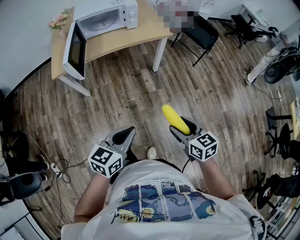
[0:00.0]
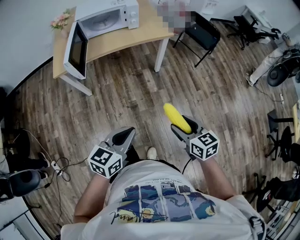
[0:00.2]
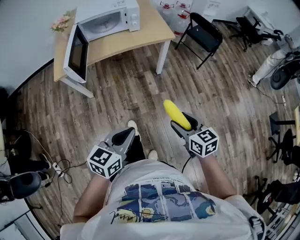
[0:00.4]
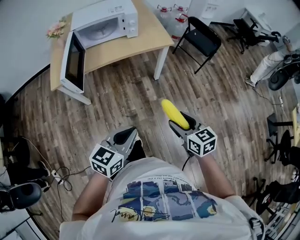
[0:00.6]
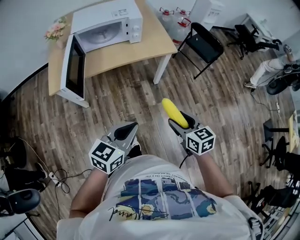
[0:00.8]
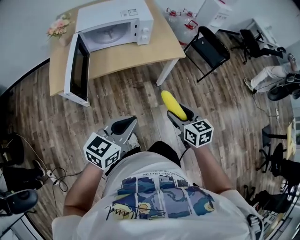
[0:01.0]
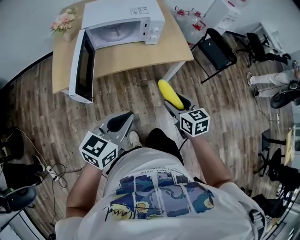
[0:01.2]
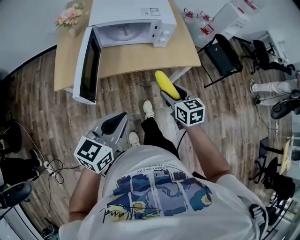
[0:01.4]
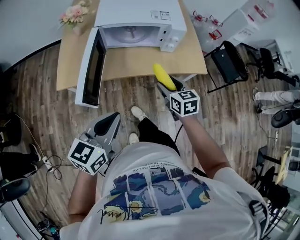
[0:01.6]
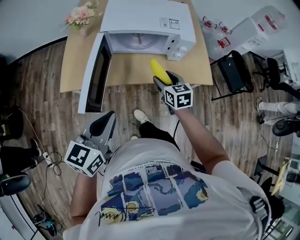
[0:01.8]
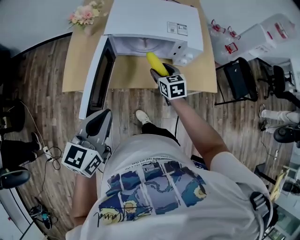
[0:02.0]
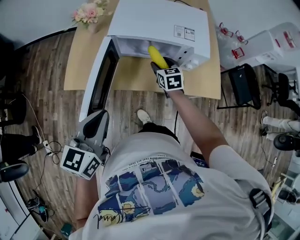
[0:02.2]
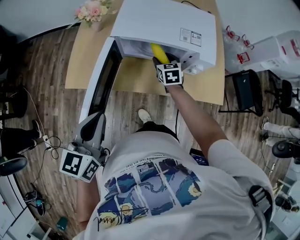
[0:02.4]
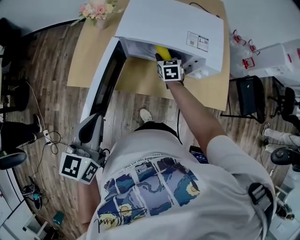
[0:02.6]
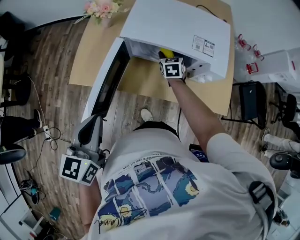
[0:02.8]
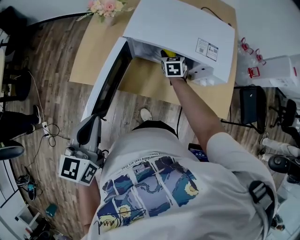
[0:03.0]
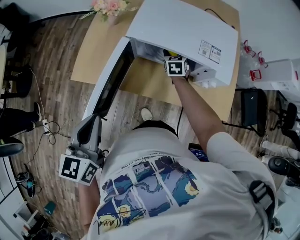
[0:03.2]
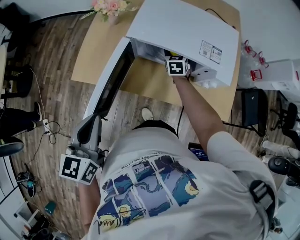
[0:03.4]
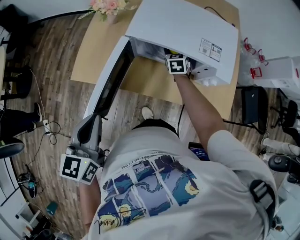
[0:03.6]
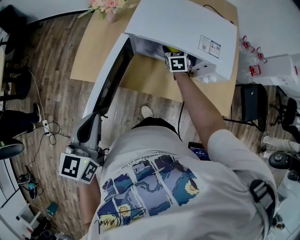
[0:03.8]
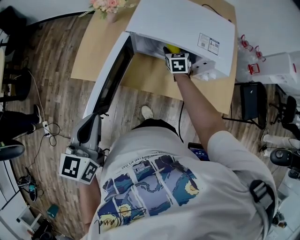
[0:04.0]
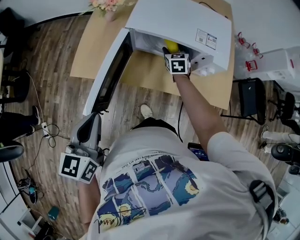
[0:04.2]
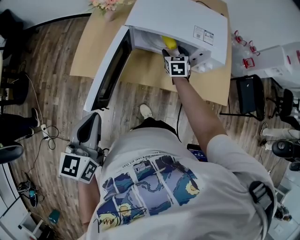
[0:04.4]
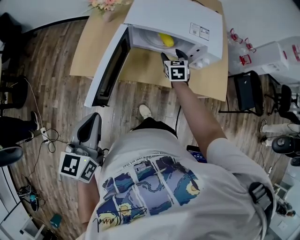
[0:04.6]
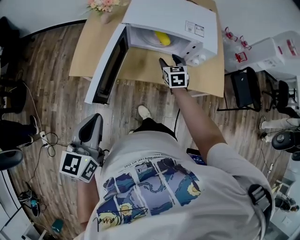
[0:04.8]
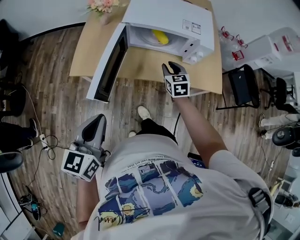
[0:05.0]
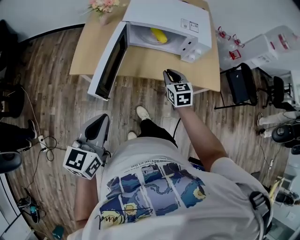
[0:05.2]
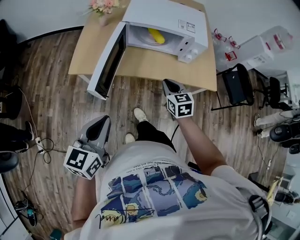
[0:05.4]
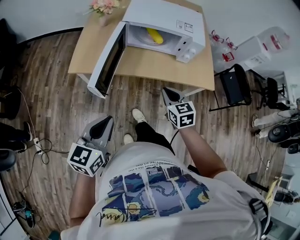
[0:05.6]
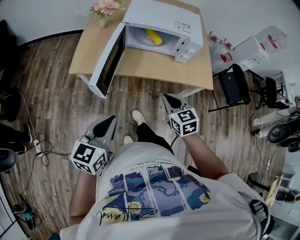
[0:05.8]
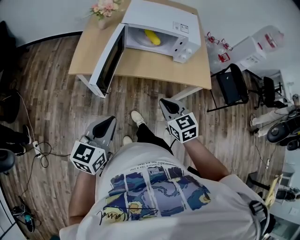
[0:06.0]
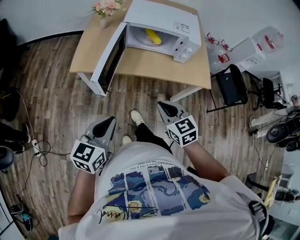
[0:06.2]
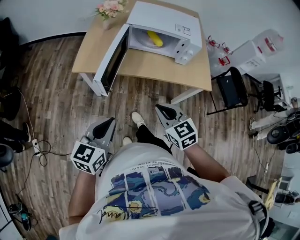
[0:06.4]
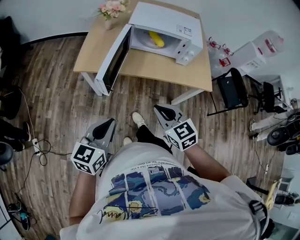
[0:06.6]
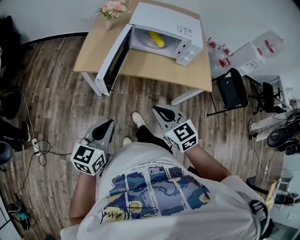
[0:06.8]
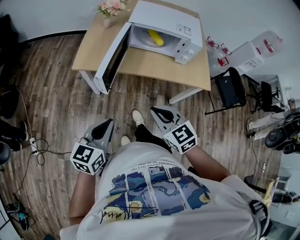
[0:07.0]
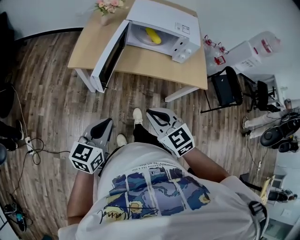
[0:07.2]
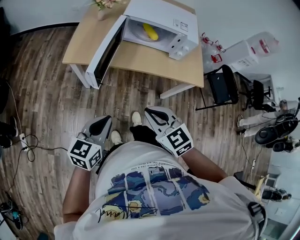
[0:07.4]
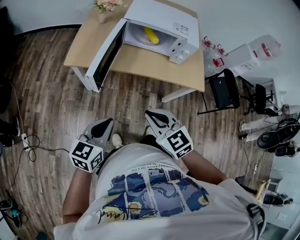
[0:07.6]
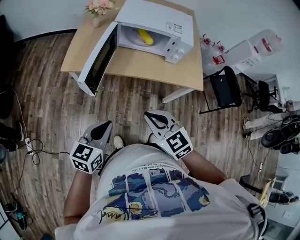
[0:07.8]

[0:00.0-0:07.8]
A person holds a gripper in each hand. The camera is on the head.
0.0 to 1.6 s: The two grippers go roughly 40 cm forward and to the left.
1.6 to 3.2 s: The right gripper shifts approximately 35 cm forward, while the left gripper travels forward and to the left by roughly 15 cm, and swivels some 40 degrees.
3.2 to 4.6 s: The grippers both shift backward by about 10 cm.
4.6 to 6.2 s: The left gripper is displaced backward by roughly 10 cm; the right gripper moves backward, about 35 cm, and closes up.
6.2 to 7.8 s: The left gripper changes place by some 5 cm.

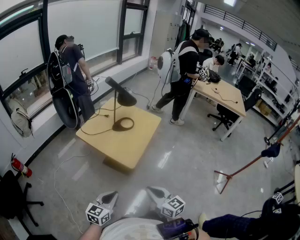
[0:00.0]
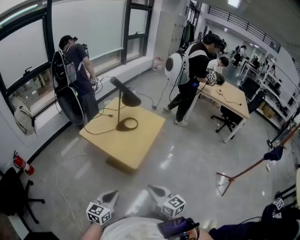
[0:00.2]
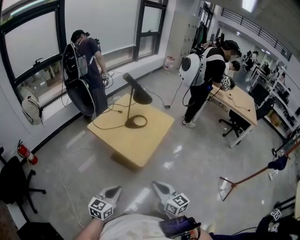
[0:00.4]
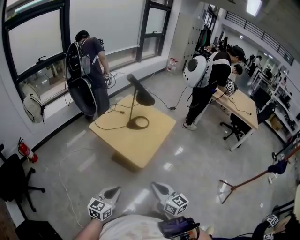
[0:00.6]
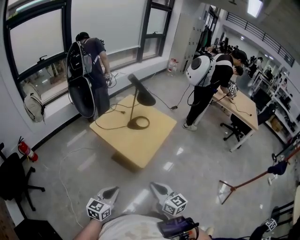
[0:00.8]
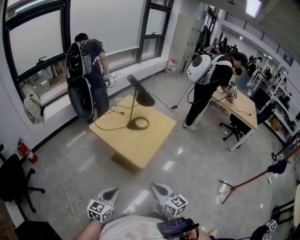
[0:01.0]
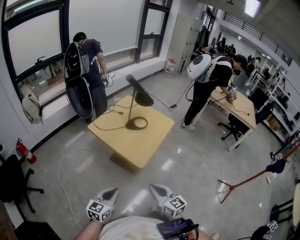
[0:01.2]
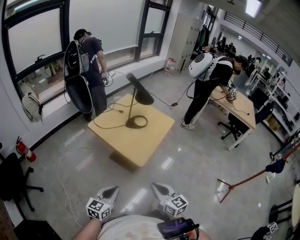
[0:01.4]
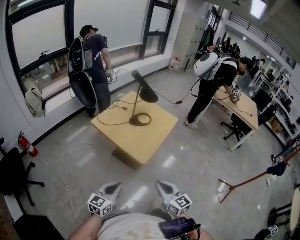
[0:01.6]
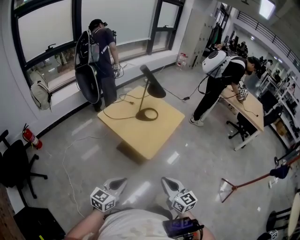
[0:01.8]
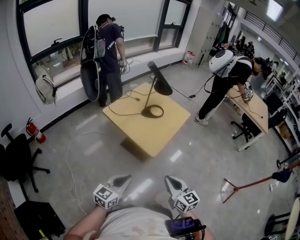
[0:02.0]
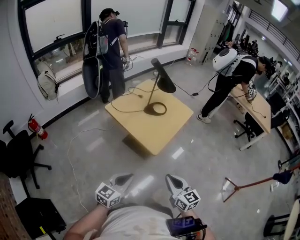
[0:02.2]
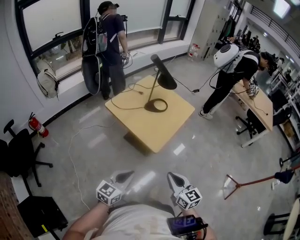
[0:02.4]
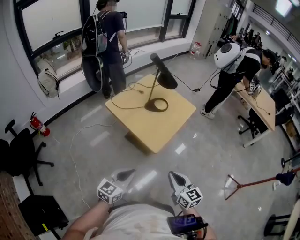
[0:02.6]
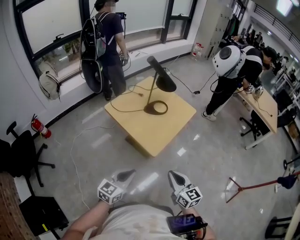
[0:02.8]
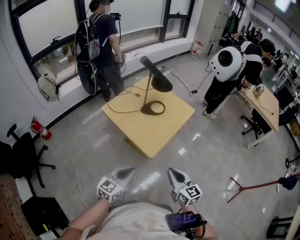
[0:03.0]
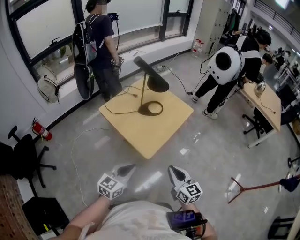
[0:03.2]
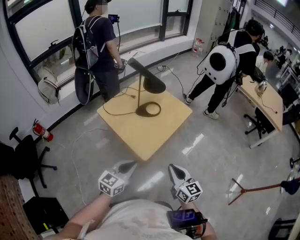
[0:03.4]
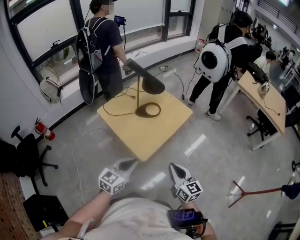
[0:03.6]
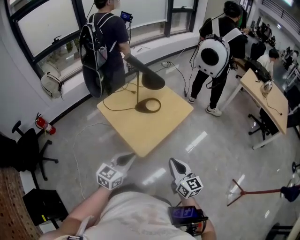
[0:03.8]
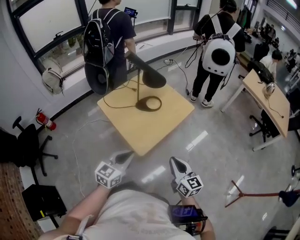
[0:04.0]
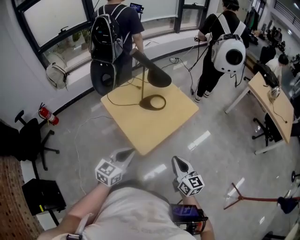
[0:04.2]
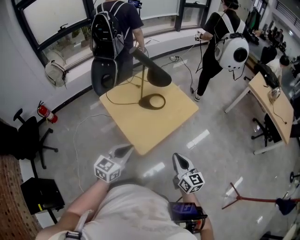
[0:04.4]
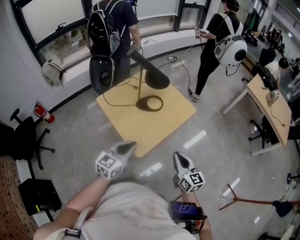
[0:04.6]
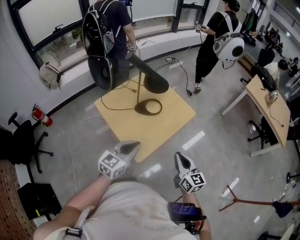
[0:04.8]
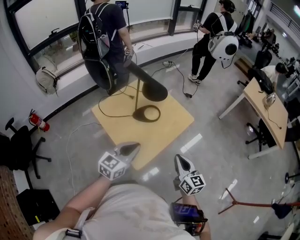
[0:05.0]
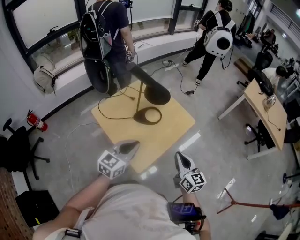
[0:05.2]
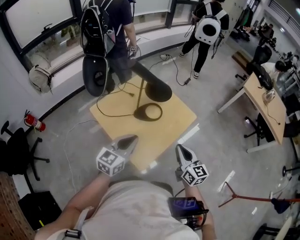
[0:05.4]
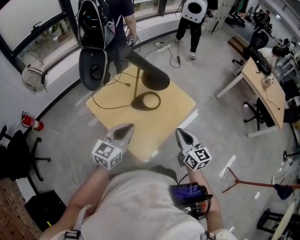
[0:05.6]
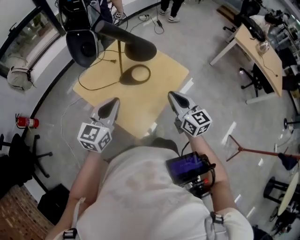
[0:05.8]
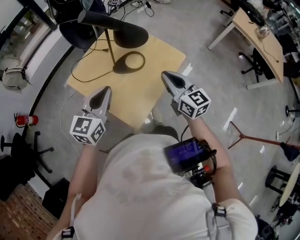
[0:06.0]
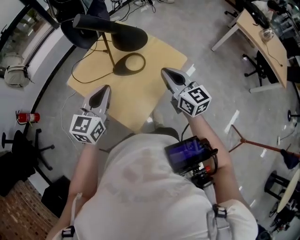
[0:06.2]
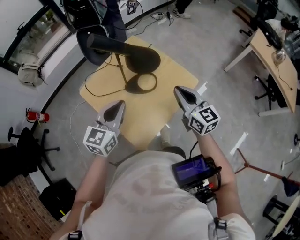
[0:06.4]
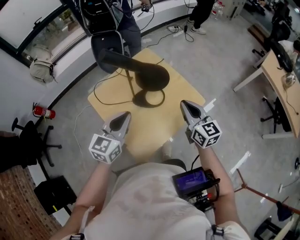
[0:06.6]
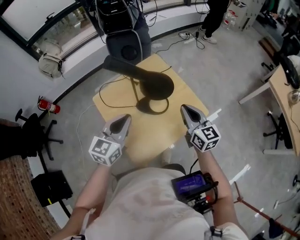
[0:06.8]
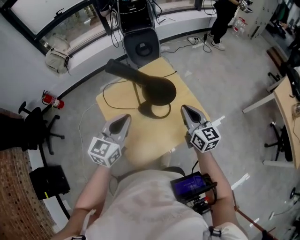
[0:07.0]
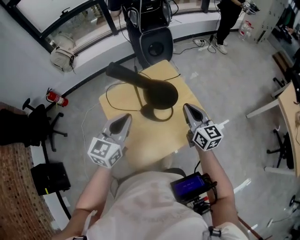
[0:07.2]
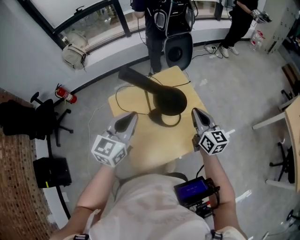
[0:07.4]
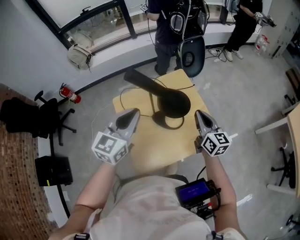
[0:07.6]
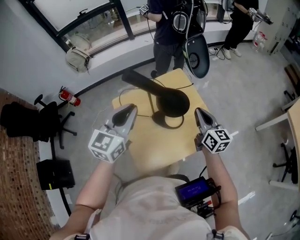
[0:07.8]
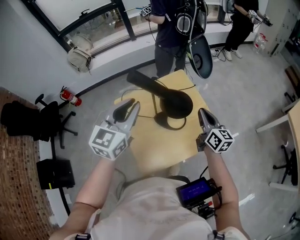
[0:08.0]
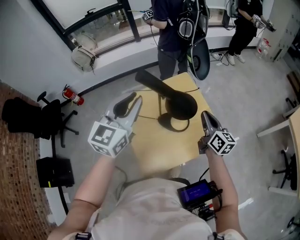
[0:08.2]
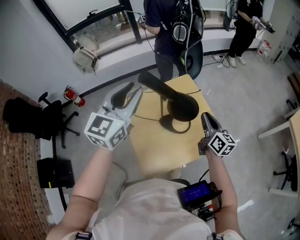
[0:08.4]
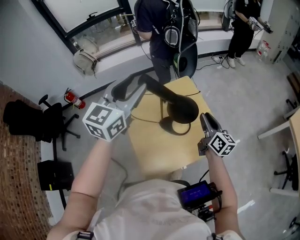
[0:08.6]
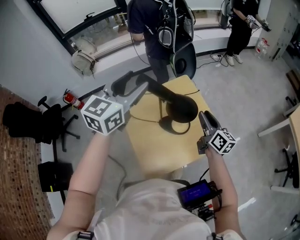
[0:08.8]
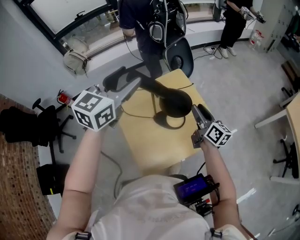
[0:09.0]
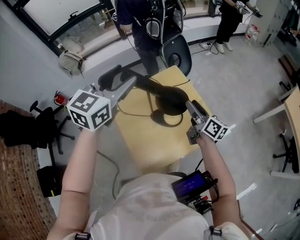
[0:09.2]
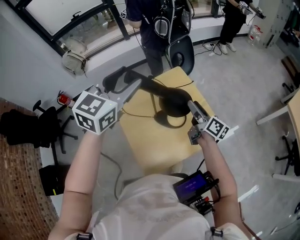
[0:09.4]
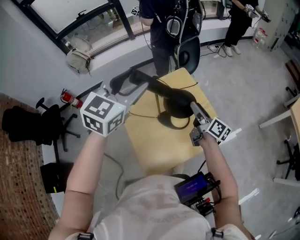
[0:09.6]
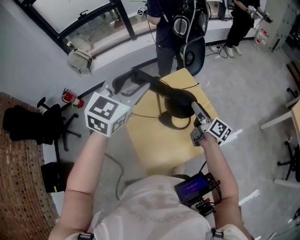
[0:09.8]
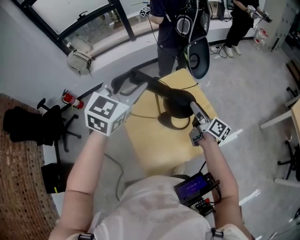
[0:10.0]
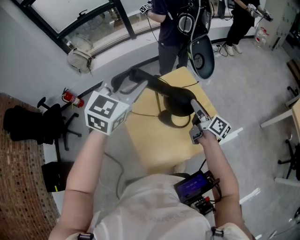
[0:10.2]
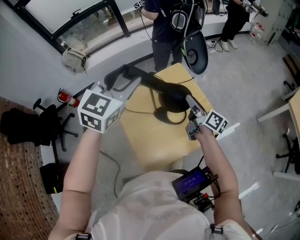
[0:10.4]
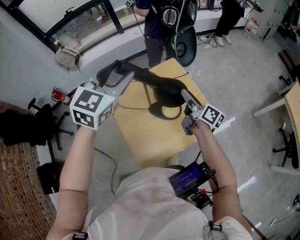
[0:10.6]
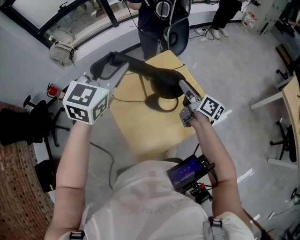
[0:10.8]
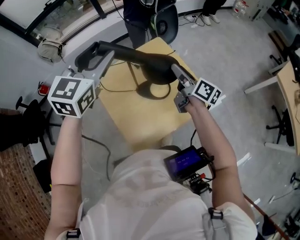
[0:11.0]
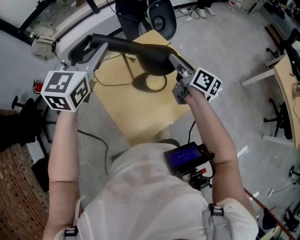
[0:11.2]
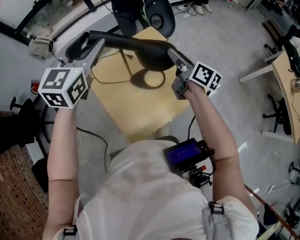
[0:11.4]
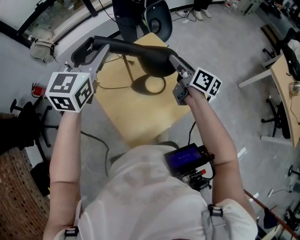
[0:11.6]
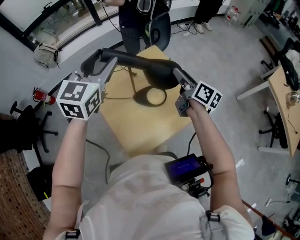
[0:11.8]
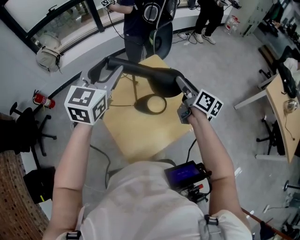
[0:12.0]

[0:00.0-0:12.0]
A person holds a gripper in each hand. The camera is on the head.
0.0 to 1.6 s: The grippers stay close to where they were, moving slightly.
1.6 to 3.0 s: The right gripper is displaced forward by roughly 10 cm. The left gripper heads forward and to the right, covering approximately 10 cm.
3.0 to 4.4 s: Both grippers move forward and to the right, about 15 cm.
4.4 to 6.0 s: The grippers both shift forward by some 20 cm.
6.0 to 7.6 s: The left gripper is displaced forward and upward by approximately 15 cm, and changes its angle by some 30 degrees; the right gripper is displaced forward by about 20 cm.
7.6 to 9.0 s: The right gripper swivels about 20 degrees, and opens. Meanwhile the left gripper travels upward and forward by some 15 cm, and opens up.
9.0 to 10.4 s: The right gripper turns by approximately 20 degrees.
10.4 to 12.0 s: The right gripper shifts roughly 5 cm upward.

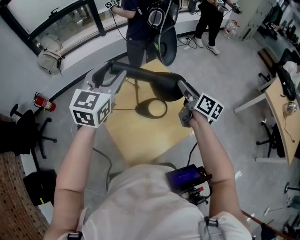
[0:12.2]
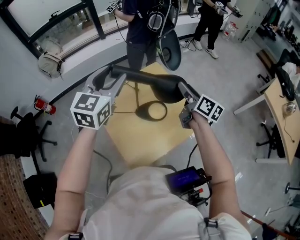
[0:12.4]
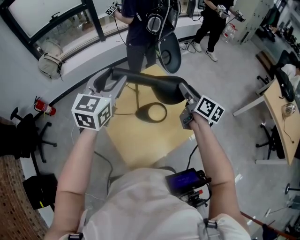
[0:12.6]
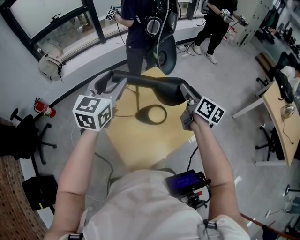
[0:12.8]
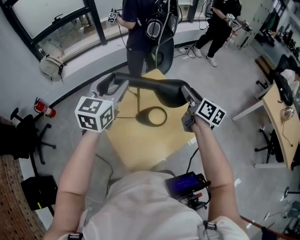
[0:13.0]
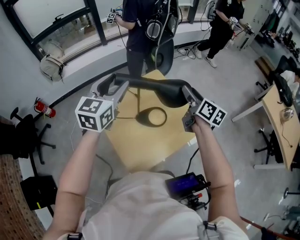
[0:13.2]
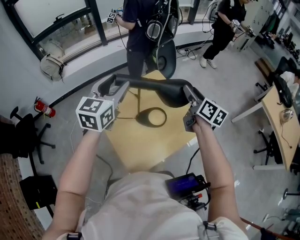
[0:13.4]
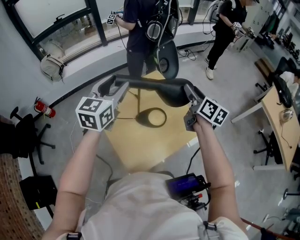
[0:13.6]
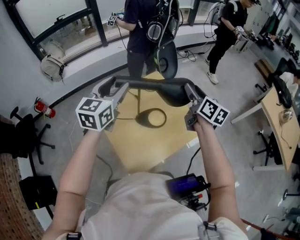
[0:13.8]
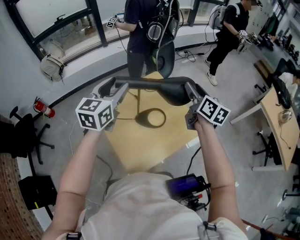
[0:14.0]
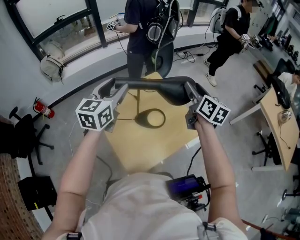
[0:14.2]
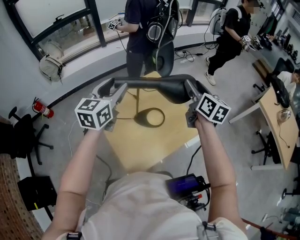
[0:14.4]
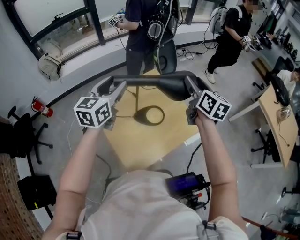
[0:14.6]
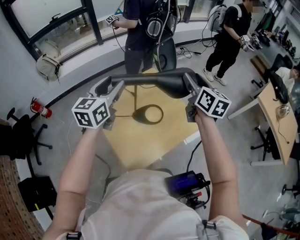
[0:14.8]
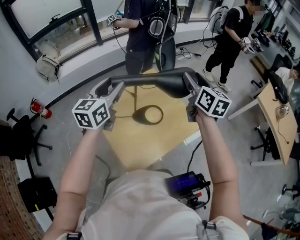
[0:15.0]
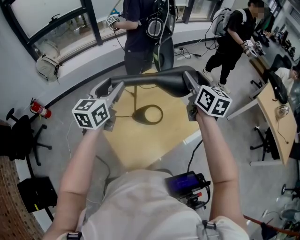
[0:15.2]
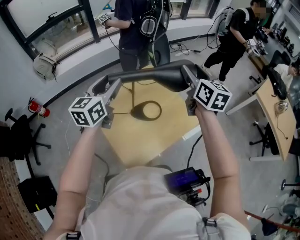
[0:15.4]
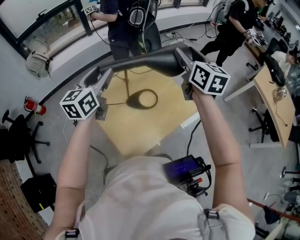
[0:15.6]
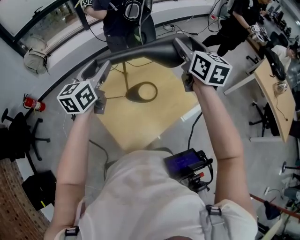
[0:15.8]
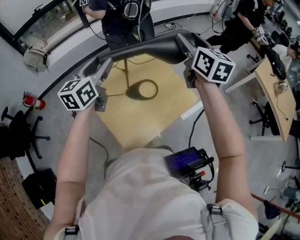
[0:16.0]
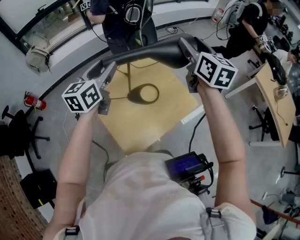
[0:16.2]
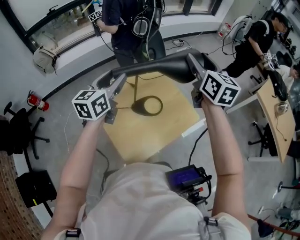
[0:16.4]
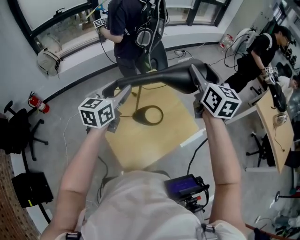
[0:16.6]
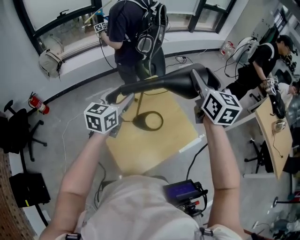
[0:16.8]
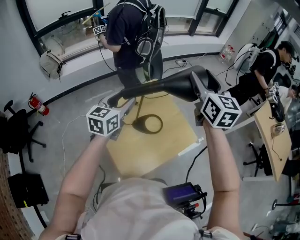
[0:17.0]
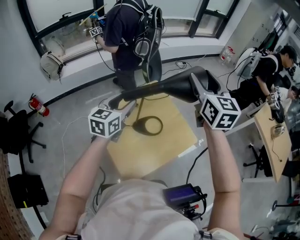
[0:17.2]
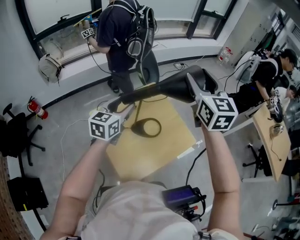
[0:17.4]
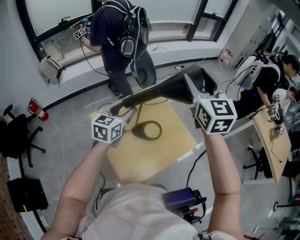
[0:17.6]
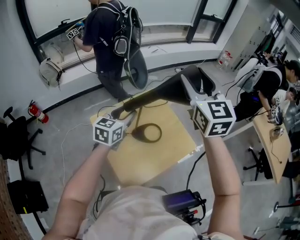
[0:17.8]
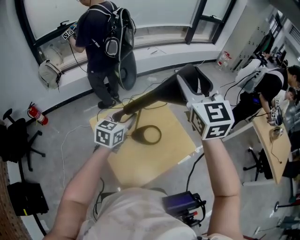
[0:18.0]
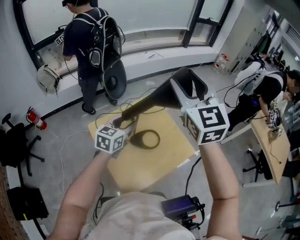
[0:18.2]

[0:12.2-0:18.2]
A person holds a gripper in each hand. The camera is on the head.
12.2 to 13.8 s: The right gripper goes some 5 cm upward.
13.8 to 15.2 s: The right gripper travels upward by roughly 5 cm.
15.2 to 16.6 s: The right gripper moves upward, some 5 cm.
16.6 to 18.2 s: The left gripper goes some 10 cm downward. The right gripper travels to the left and upward by roughly 15 cm, and rotates about 30 degrees.
